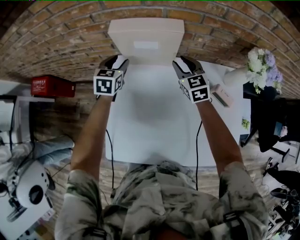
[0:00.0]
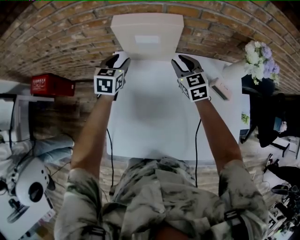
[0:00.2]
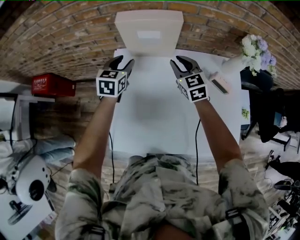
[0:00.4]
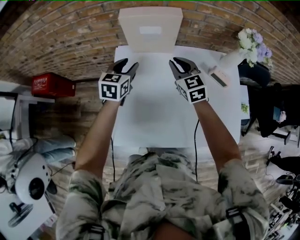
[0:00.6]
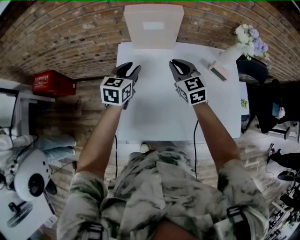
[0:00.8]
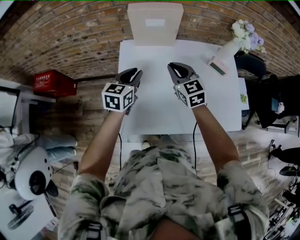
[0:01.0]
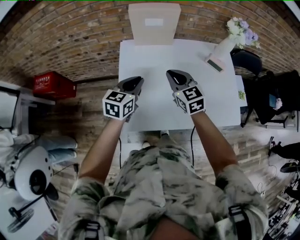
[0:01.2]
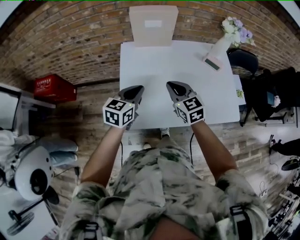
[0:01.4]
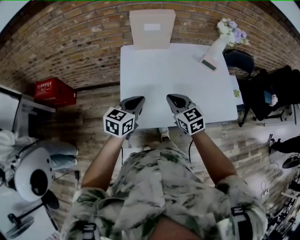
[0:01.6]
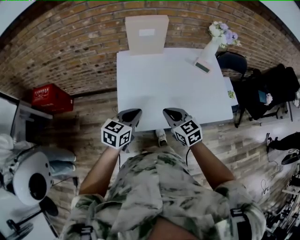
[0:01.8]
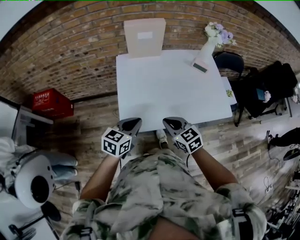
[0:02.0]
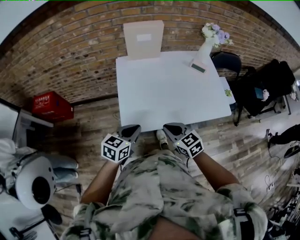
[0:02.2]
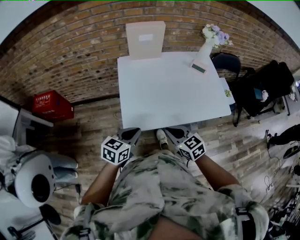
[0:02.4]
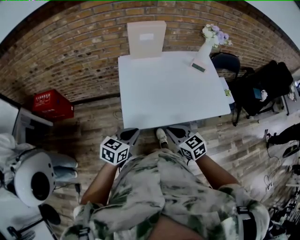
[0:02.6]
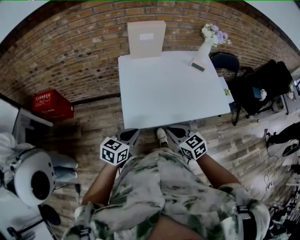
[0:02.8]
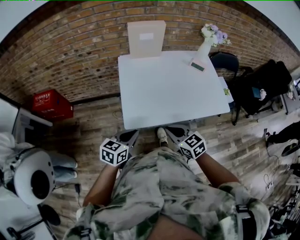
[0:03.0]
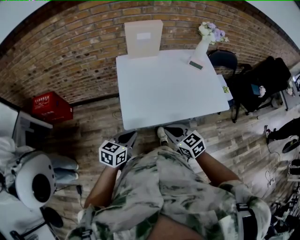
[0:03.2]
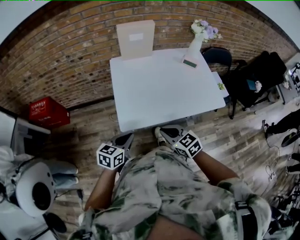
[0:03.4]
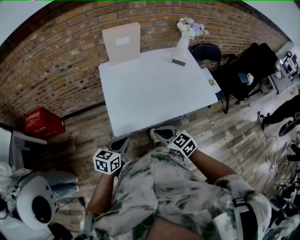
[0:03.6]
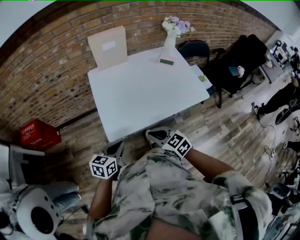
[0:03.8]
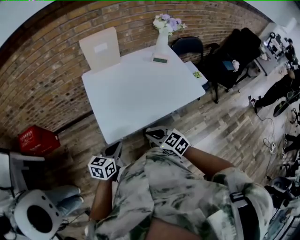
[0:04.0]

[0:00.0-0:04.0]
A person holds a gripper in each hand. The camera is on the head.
0:00.0 to 0:01.4: The grippers both shift backward by some 35 cm. The left gripper changes its angle by some 30 degrees, and closes up. Meanwhile the right gripper closes its fingers.
0:01.4 to 0:02.6: The grippers both shift backward by approximately 25 cm.
0:02.6 to 0:04.0: The grippers move only a little.

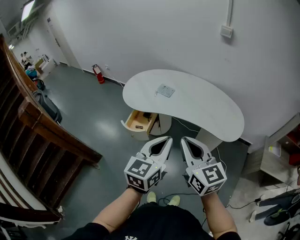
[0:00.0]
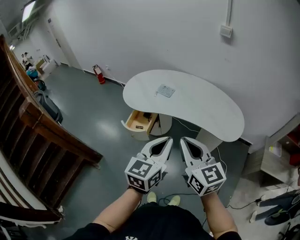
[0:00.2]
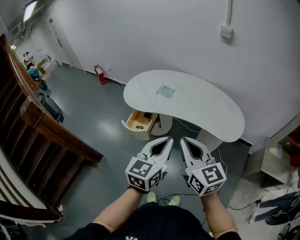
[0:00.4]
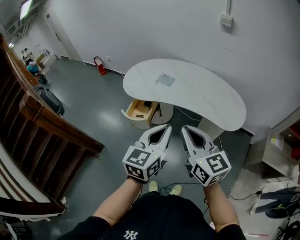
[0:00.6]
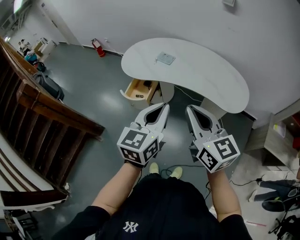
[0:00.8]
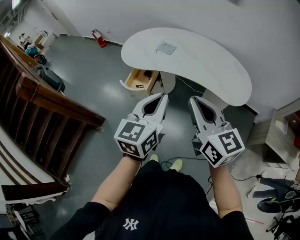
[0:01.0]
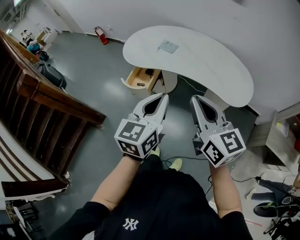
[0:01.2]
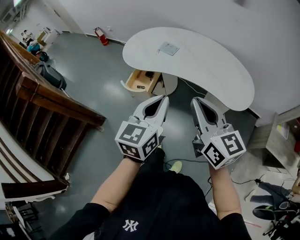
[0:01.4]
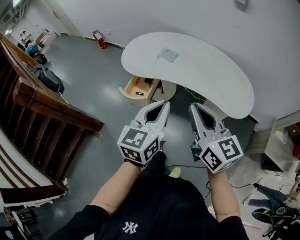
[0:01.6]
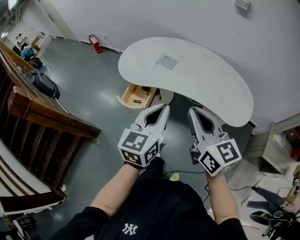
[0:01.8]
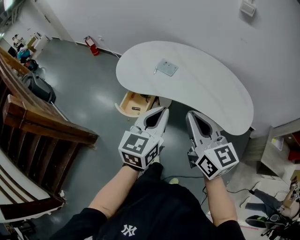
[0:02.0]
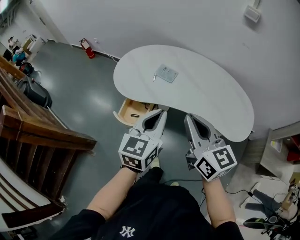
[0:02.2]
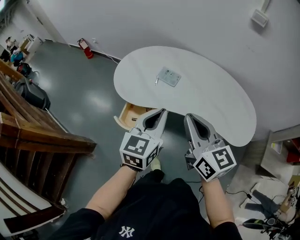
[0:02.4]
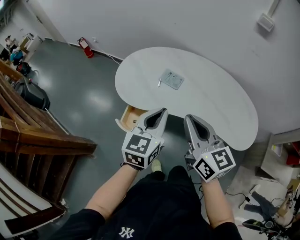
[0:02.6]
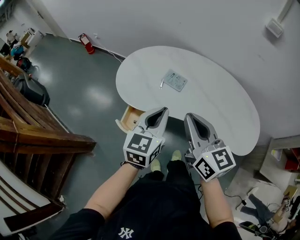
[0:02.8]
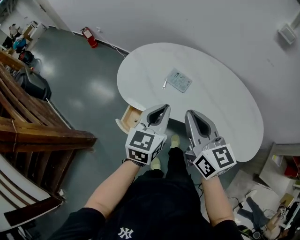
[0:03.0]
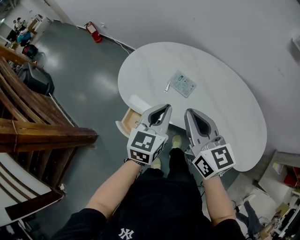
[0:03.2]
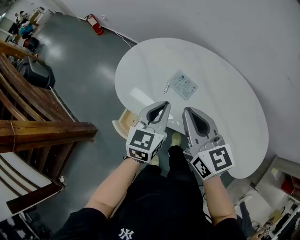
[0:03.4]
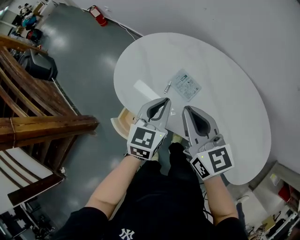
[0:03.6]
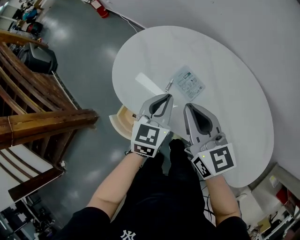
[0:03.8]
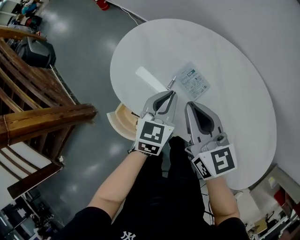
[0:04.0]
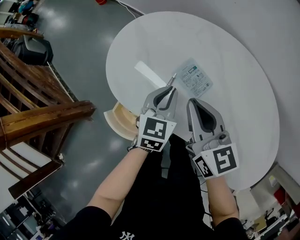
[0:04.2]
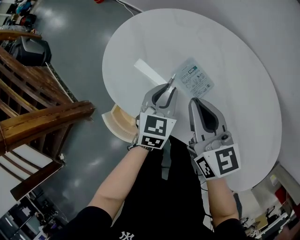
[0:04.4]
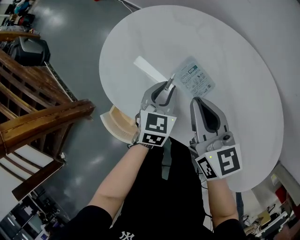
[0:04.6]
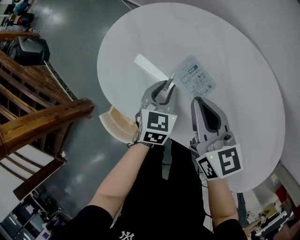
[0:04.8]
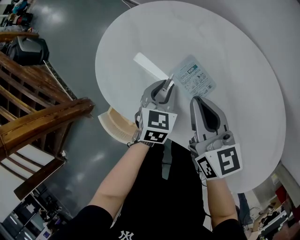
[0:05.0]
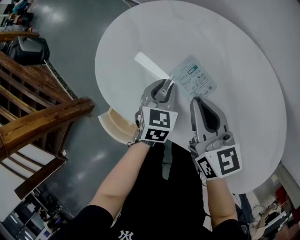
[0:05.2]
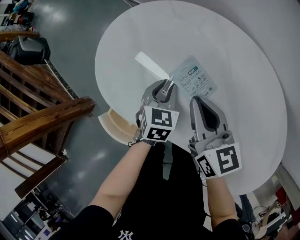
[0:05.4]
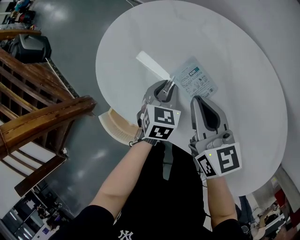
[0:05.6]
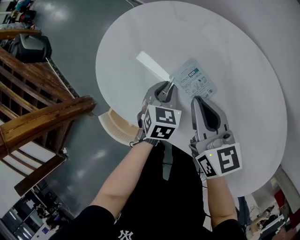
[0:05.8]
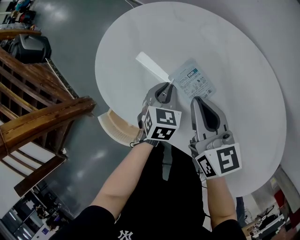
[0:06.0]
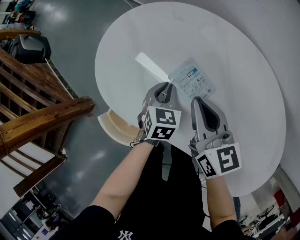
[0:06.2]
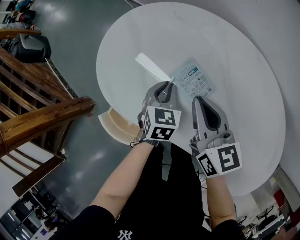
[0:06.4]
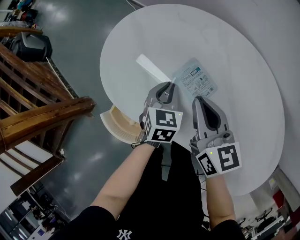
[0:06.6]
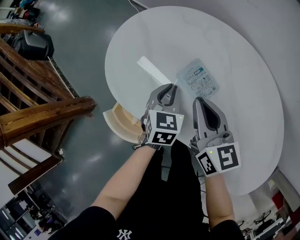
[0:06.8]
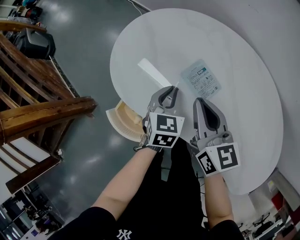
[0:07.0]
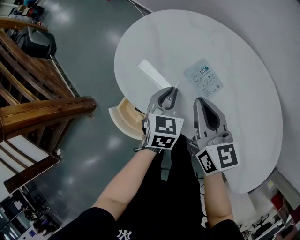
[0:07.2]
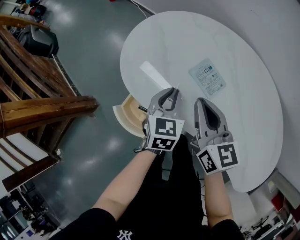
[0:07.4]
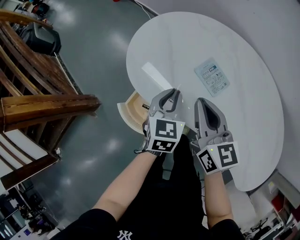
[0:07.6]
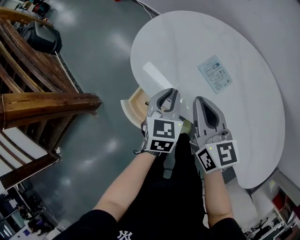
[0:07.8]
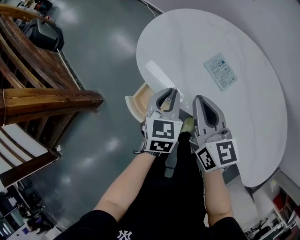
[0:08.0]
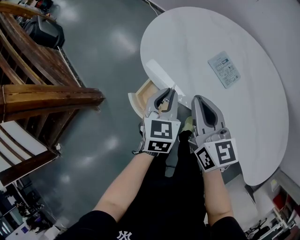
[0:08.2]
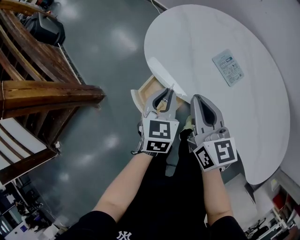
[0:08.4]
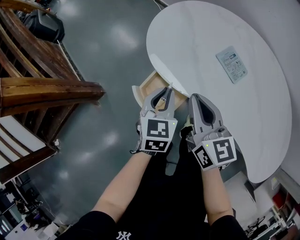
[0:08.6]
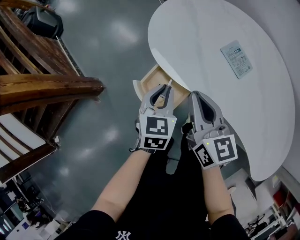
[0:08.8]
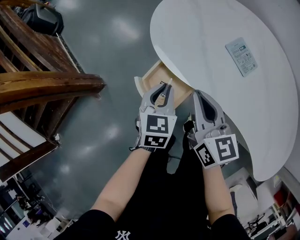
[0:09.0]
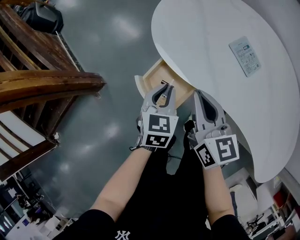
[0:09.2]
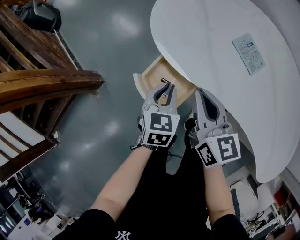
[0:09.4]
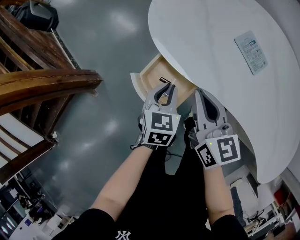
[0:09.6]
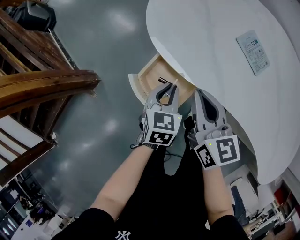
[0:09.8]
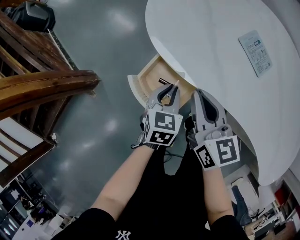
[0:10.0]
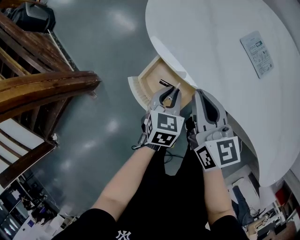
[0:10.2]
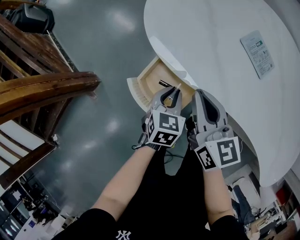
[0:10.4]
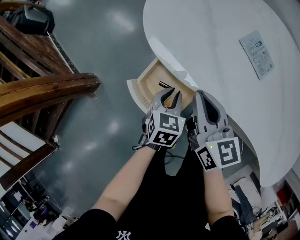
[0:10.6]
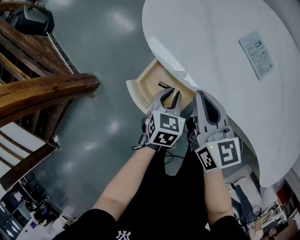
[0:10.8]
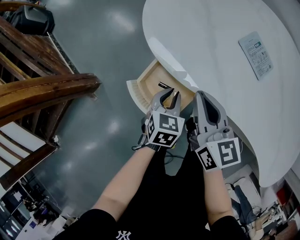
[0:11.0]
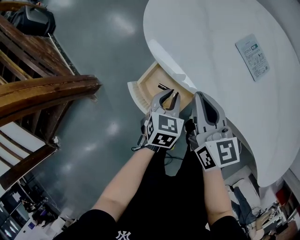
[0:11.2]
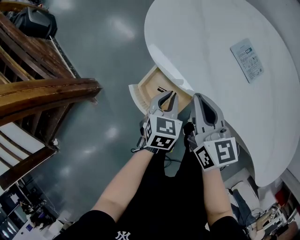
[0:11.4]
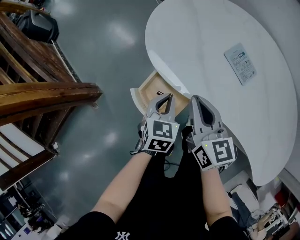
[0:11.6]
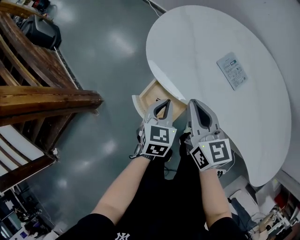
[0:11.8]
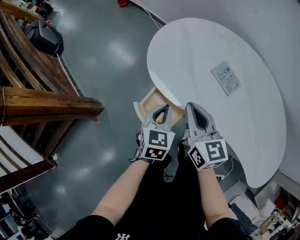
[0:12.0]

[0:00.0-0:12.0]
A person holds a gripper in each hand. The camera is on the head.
0:00.0 to 0:01.6: The grippers both shift forward by roughly 5 cm.
0:01.6 to 0:03.0: Both grippers travel together forward, roughly 35 cm.
0:03.0 to 0:04.4: The left gripper moves downward and forward, about 30 cm, and rotates roughly 20 degrees; the right gripper heads forward and downward, covering roughly 25 cm.
0:04.4 to 0:06.0: The right gripper shifts some 5 cm downward, while the left gripper goes about 10 cm downward.
0:06.0 to 0:07.6: The left gripper is displaced upward, to the left and backward by roughly 15 cm. Meanwhile the right gripper is displaced to the left, backward and upward by about 15 cm.
0:07.6 to 0:09.0: Both grippers travel together to the left, backward and downward, about 15 cm.
0:09.0 to 0:10.4: The right gripper heads downward, covering about 10 cm, while the left gripper heads downward, covering approximately 15 cm.
0:10.4 to 0:12.0: The two grippers go about 15 cm upward.

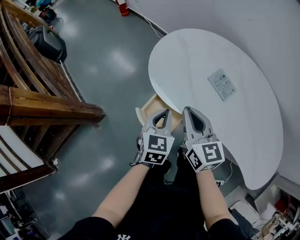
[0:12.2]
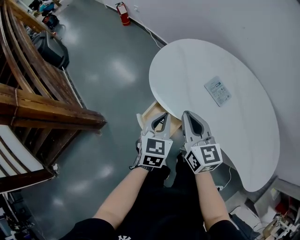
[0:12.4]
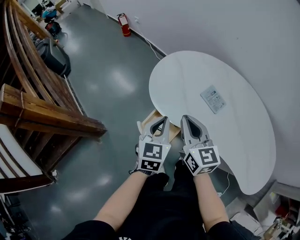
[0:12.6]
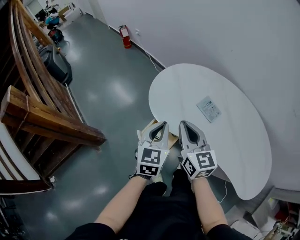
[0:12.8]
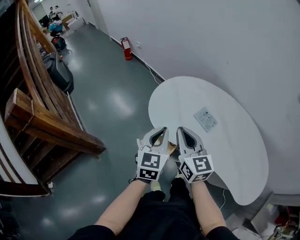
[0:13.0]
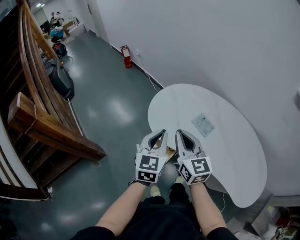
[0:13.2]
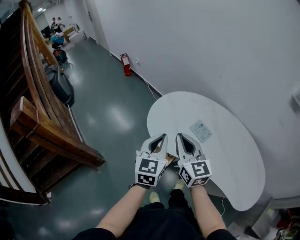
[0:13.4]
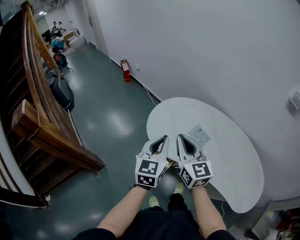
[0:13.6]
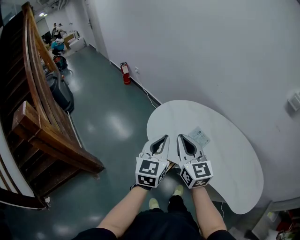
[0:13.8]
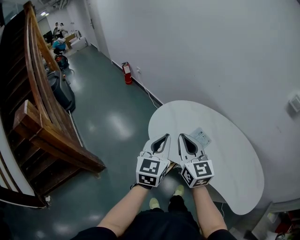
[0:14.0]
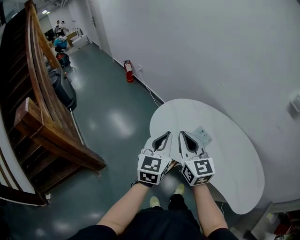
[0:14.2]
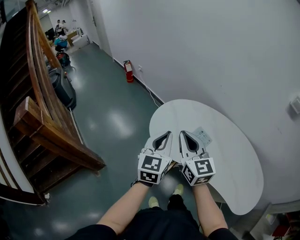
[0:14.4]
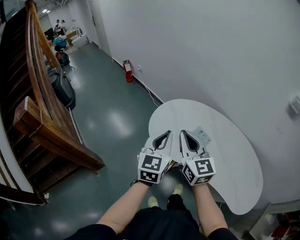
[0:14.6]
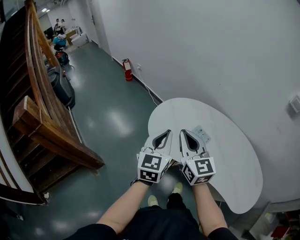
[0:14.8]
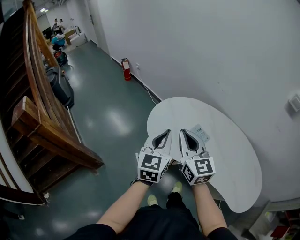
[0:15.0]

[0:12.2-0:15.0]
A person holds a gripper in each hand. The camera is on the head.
0:12.2 to 0:13.6: The two grippers go about 25 cm upward. The left gripper turns by approximately 20 degrees.
0:13.6 to 0:15.0: The grippers move only a little.

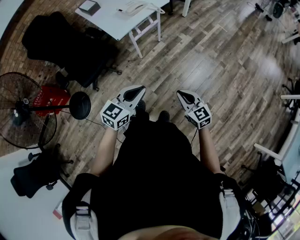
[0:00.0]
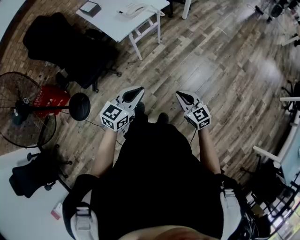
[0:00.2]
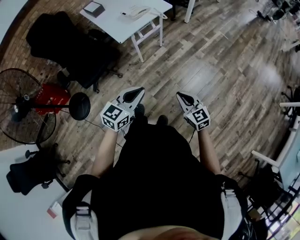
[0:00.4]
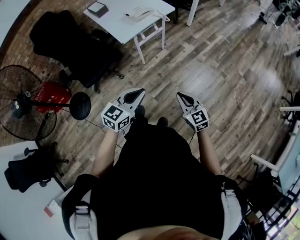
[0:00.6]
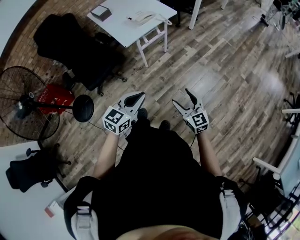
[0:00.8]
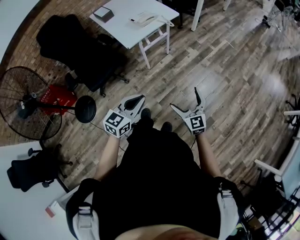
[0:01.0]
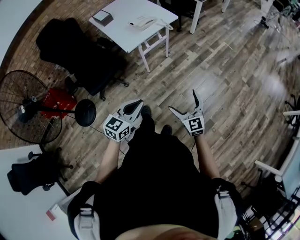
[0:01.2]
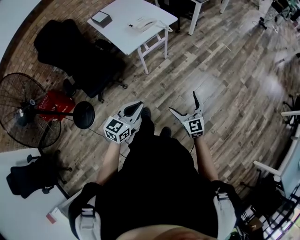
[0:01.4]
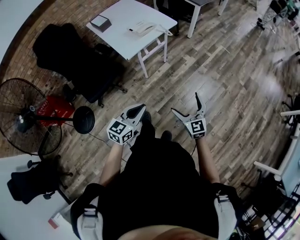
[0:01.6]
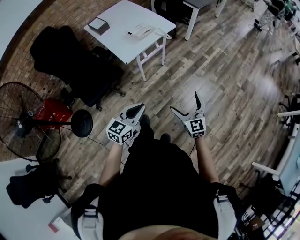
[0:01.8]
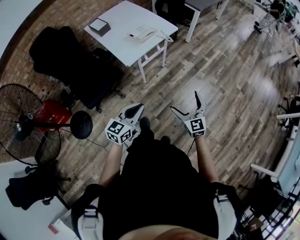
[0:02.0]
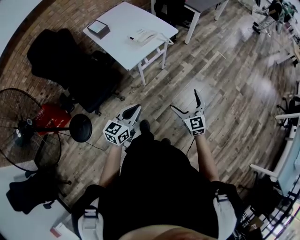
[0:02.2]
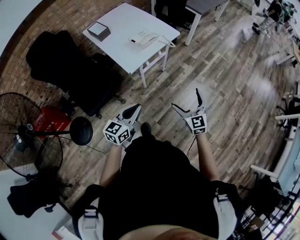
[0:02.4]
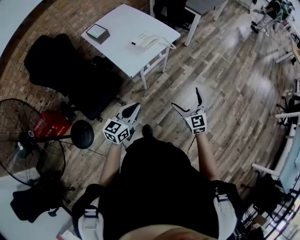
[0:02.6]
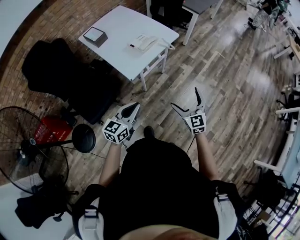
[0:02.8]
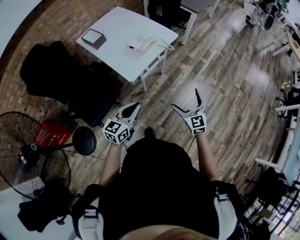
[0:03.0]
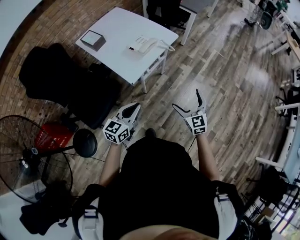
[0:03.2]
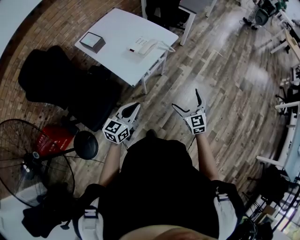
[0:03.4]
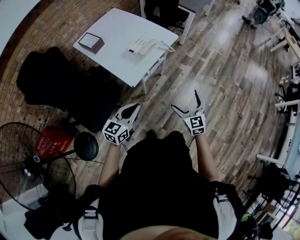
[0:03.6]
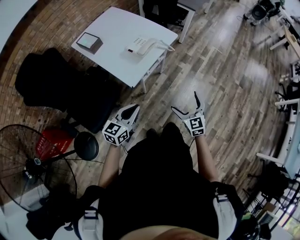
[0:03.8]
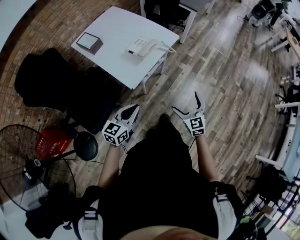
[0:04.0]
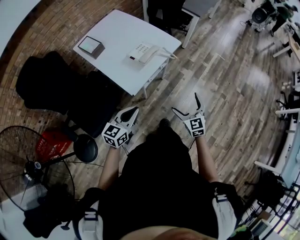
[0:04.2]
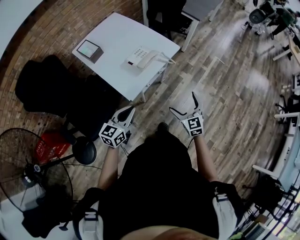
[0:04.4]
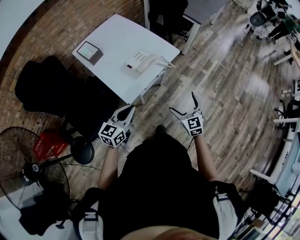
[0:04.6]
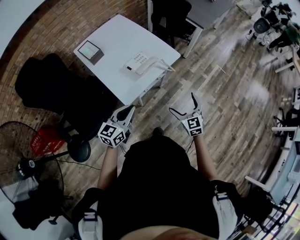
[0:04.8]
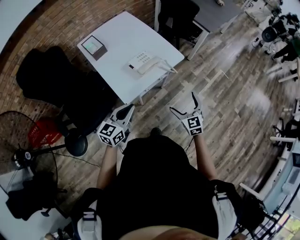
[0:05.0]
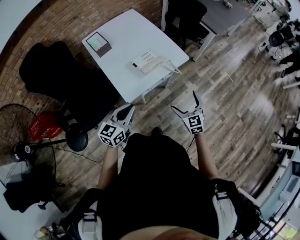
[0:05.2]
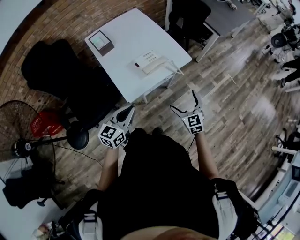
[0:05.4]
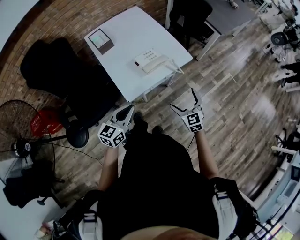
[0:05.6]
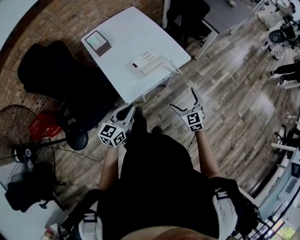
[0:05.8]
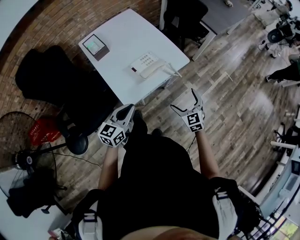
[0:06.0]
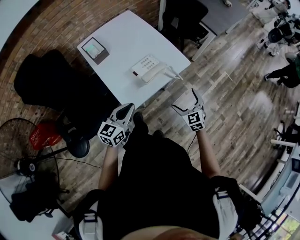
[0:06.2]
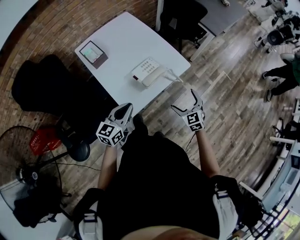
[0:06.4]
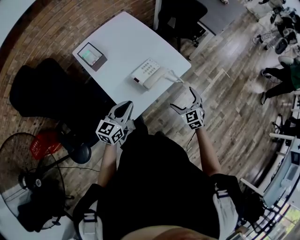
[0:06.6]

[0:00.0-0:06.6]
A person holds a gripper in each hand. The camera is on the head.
0:00.0 to 0:01.6: The right gripper travels forward by approximately 5 cm, and opens. The left gripper is displaced to the left by roughly 5 cm.
0:01.6 to 0:03.2: Both grippers travel together forward and to the left, some 25 cm.
0:03.2 to 0:05.0: Both grippers move forward, some 20 cm.
0:05.0 to 0:06.6: The grippers both shift forward and to the left by some 15 cm.
